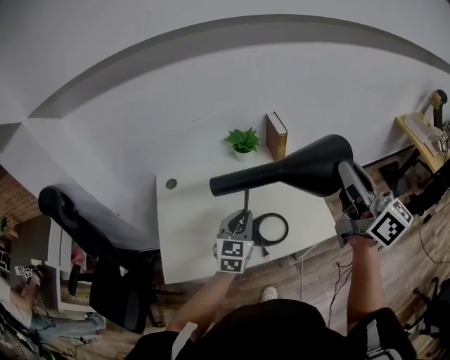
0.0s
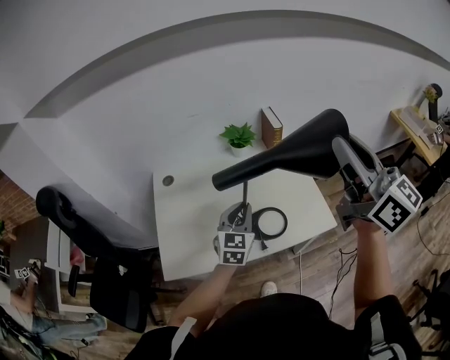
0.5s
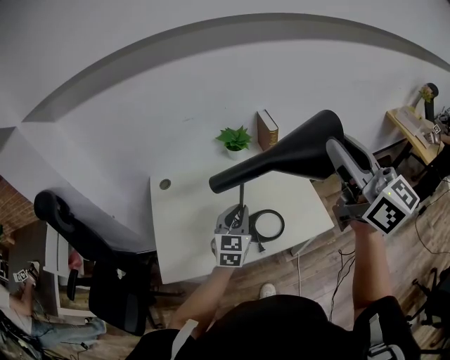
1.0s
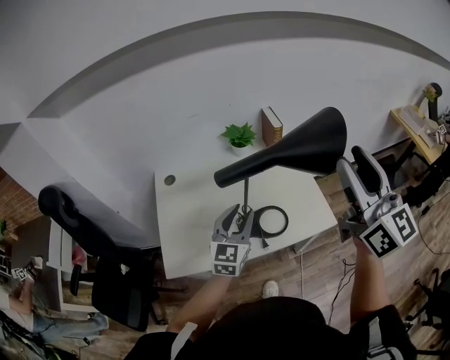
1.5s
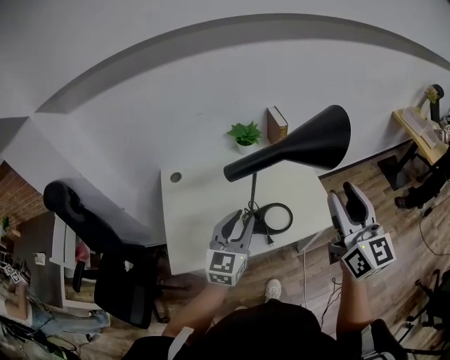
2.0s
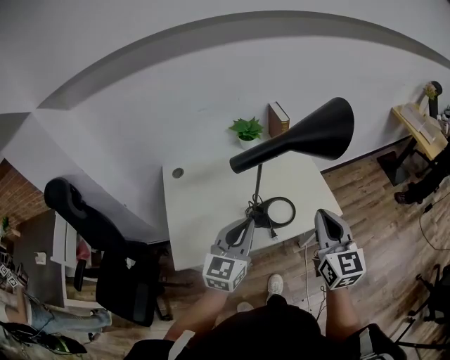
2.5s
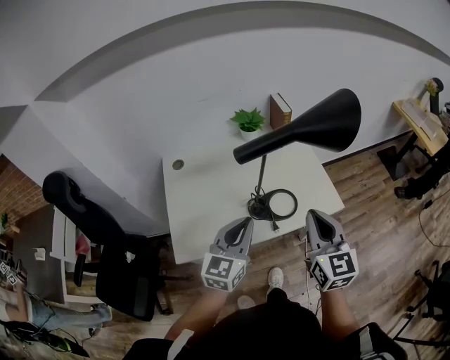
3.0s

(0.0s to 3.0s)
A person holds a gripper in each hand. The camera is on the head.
0.0s - 1.5s: The right gripper goes approximately 5 cm backward, swivels approximately 20 degrees, and opens its fingers; the left gripper shifts by about 5 cm, and opens up.
1.5s - 3.0s: The right gripper moves downward, to the left and backward, about 25 cm, swivels about 30 degrees, and closes up, while the left gripper goes about 10 cm backward, and closes its fingers.

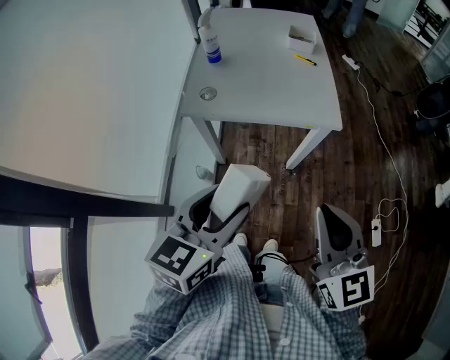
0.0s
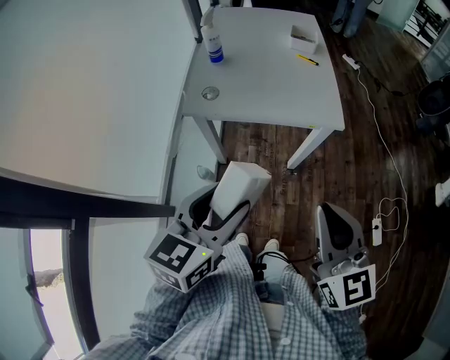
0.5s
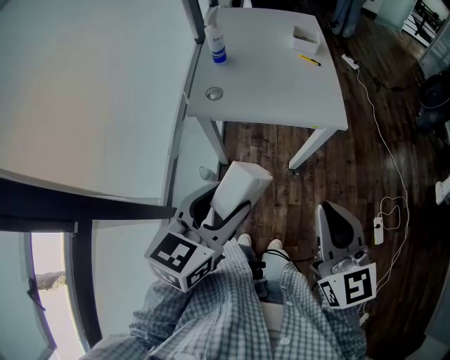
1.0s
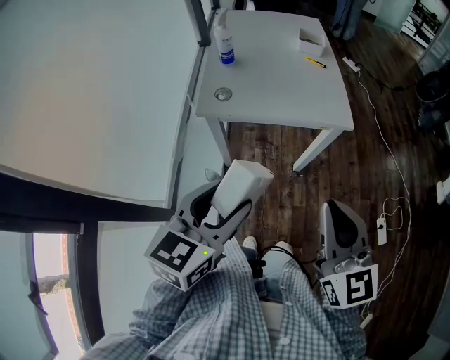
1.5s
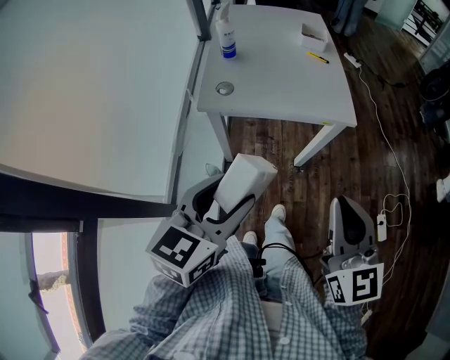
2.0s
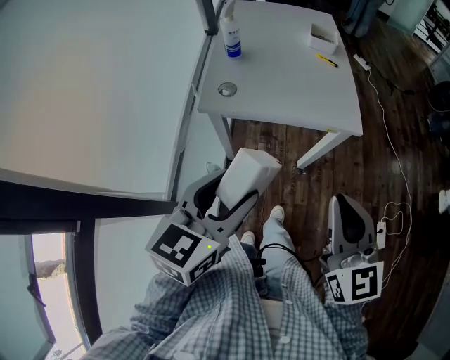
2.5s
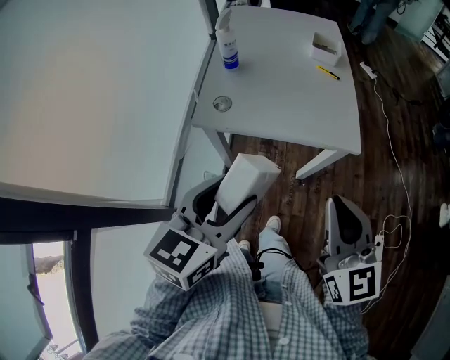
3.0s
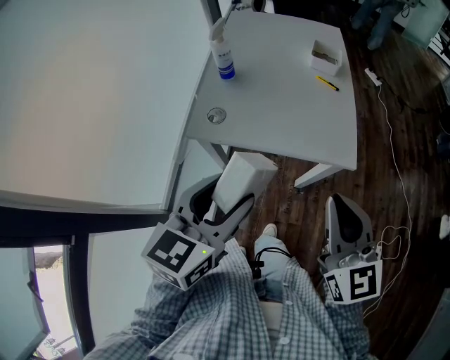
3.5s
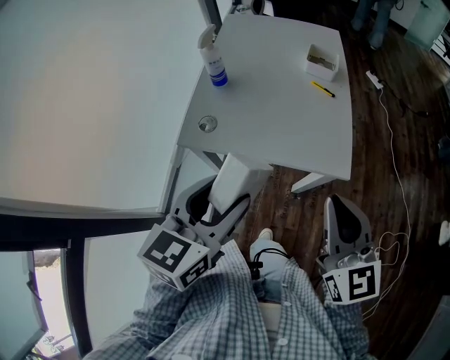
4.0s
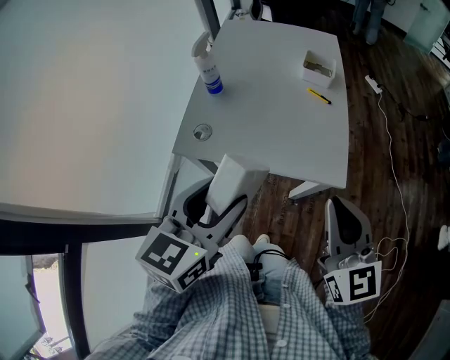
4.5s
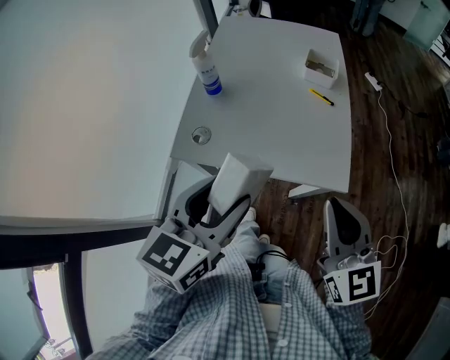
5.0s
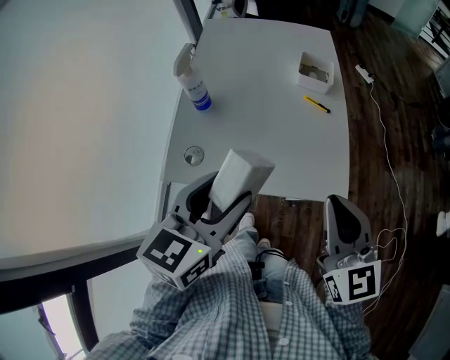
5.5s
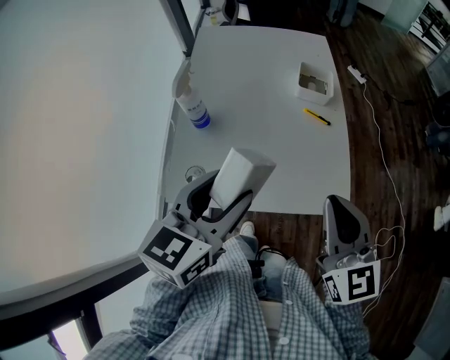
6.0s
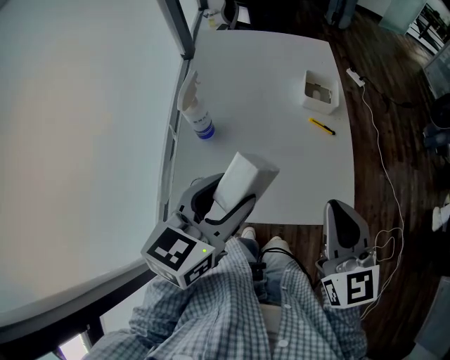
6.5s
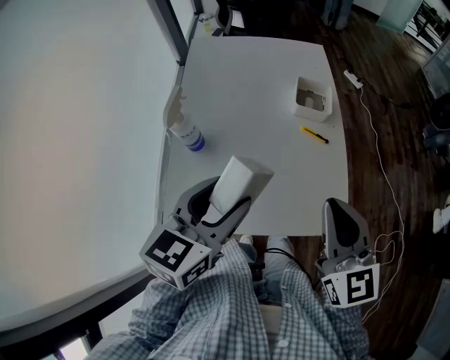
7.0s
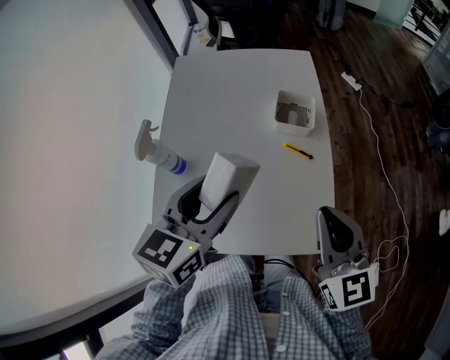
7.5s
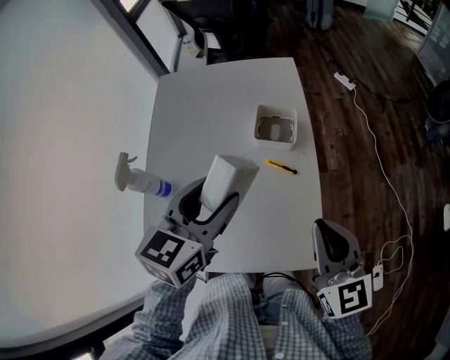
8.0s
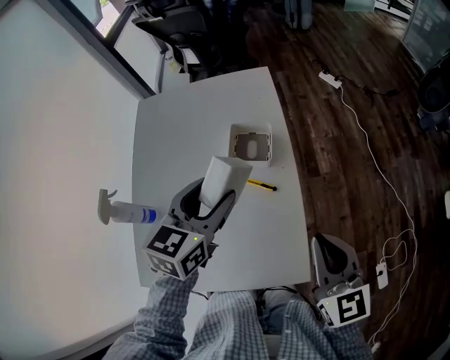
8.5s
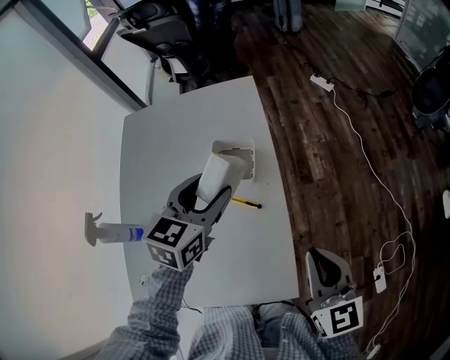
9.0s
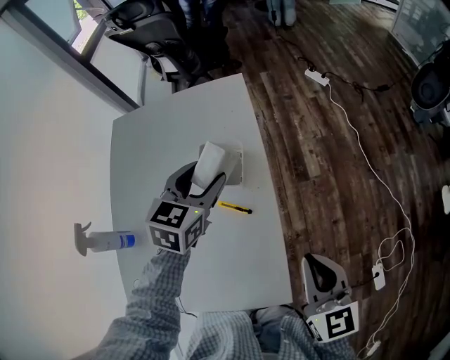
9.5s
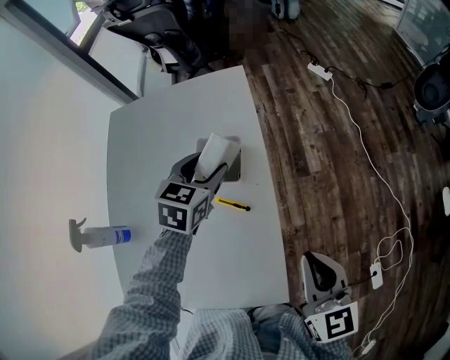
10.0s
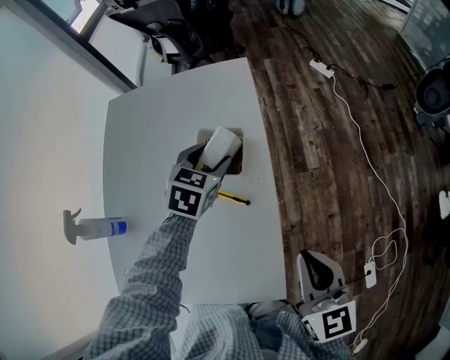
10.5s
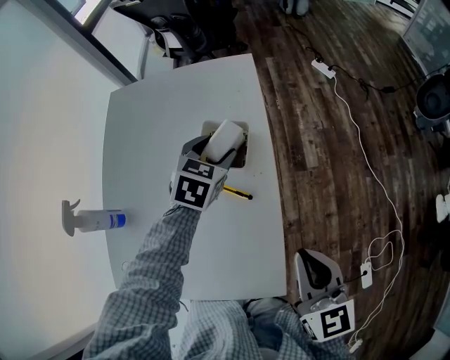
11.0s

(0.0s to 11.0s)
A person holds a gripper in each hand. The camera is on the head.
0.0s - 2.0s: The left gripper moves to the left, some 5 cm.
2.0s - 3.5s: Both grippers travel together forward, approximately 15 cm.
3.5s - 5.5s: Both grippers travel together forward, approximately 15 cm.
5.5s - 7.5s: Both grippers travel together forward, about 15 cm.
7.5s - 9.0s: The left gripper is displaced forward and to the right by some 25 cm, while the right gripper is displaced to the right, forward and downward by roughly 15 cm.
9.0s - 11.0s: The left gripper is displaced downward and forward by approximately 15 cm.

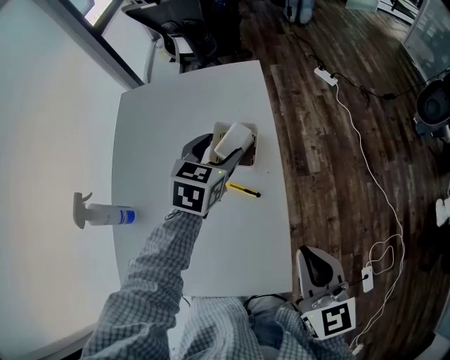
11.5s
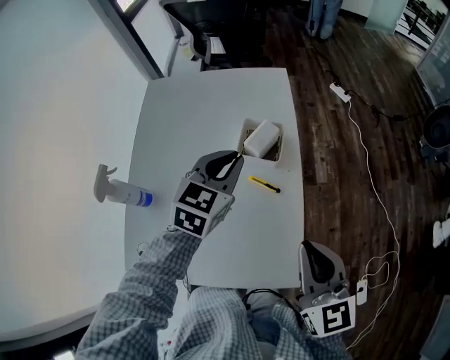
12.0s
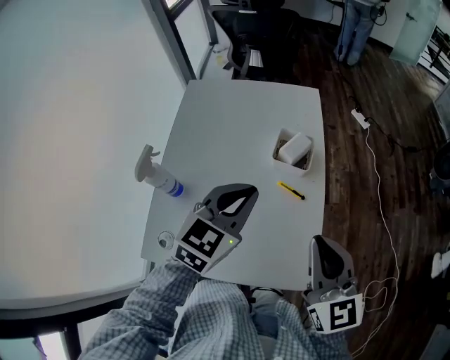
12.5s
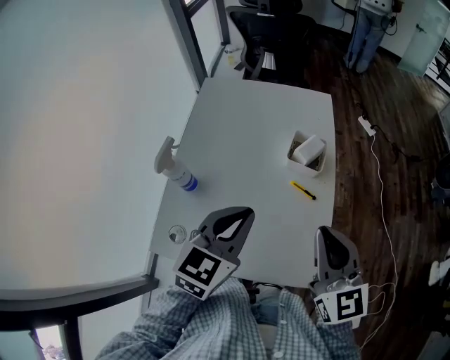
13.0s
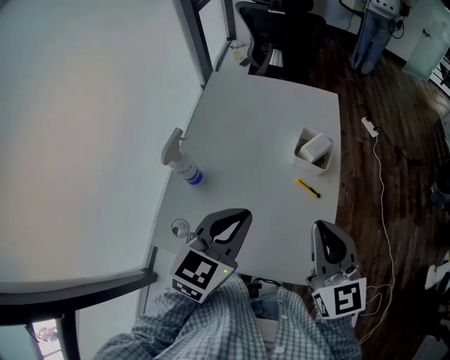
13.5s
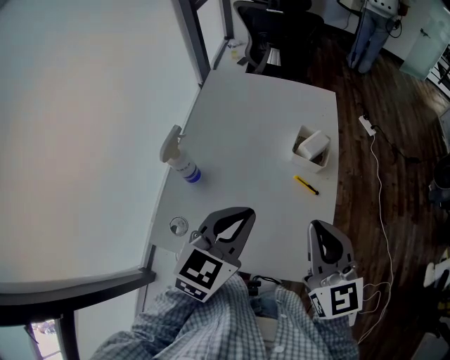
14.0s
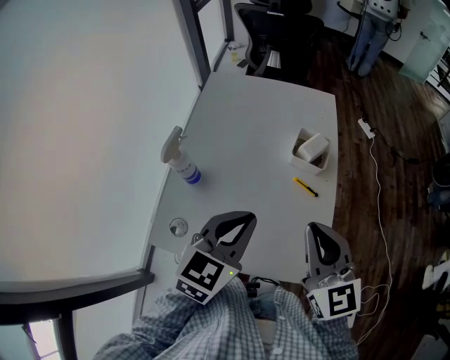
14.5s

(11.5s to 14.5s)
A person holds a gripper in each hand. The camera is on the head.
11.5s - 13.0s: The right gripper shifts about 15 cm to the left and upward. Meanwhile the left gripper moves backward, upward and to the left, some 30 cm, and closes its fingers.
13.0s - 14.5s: The grippers move only a little.

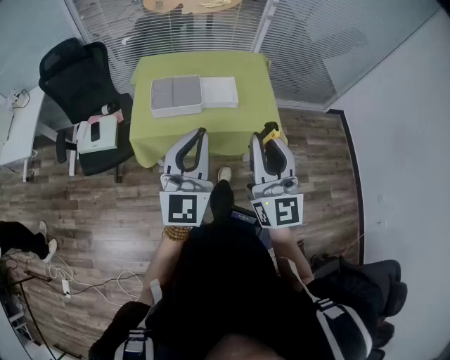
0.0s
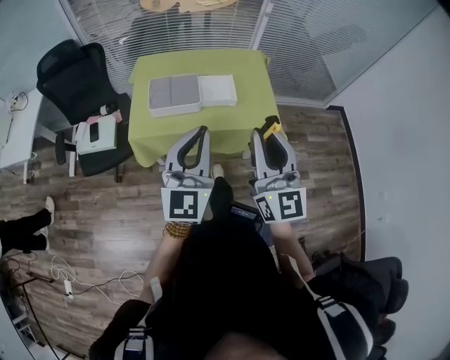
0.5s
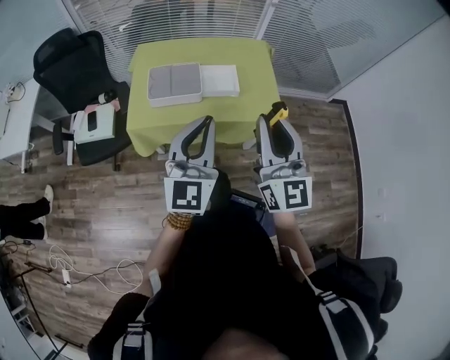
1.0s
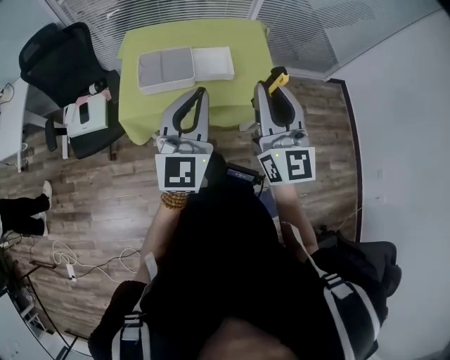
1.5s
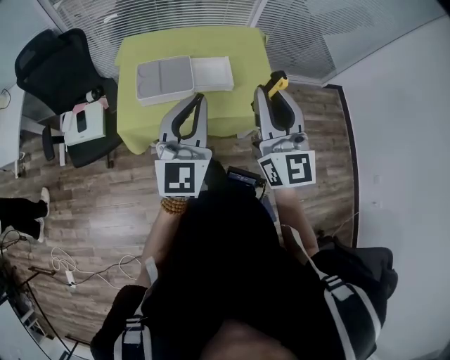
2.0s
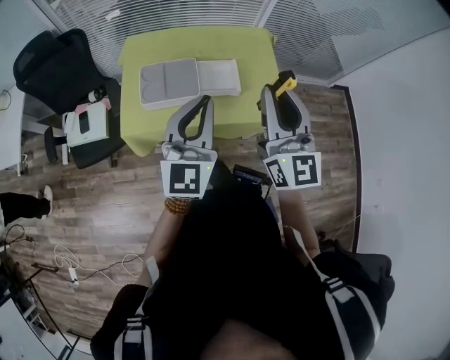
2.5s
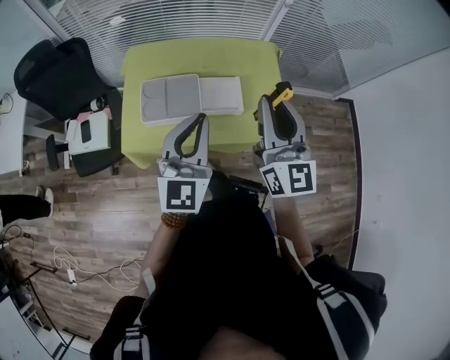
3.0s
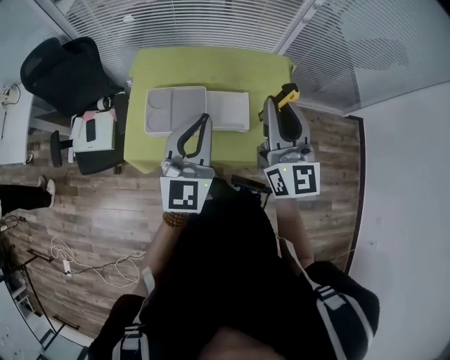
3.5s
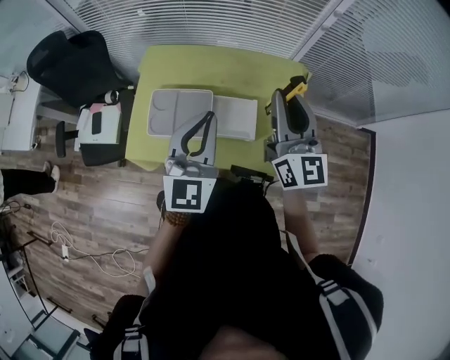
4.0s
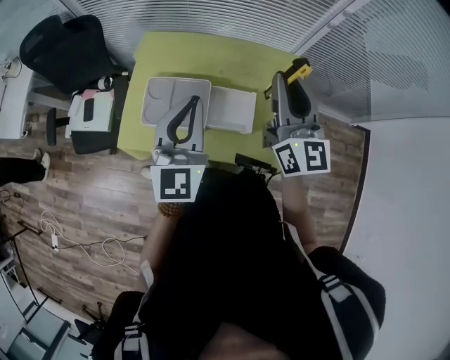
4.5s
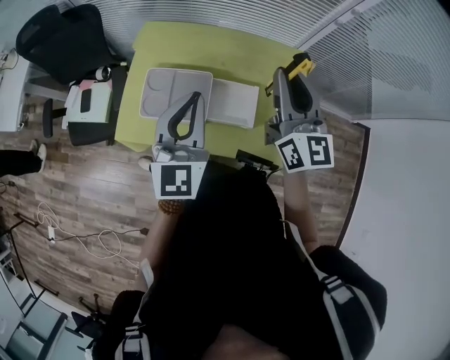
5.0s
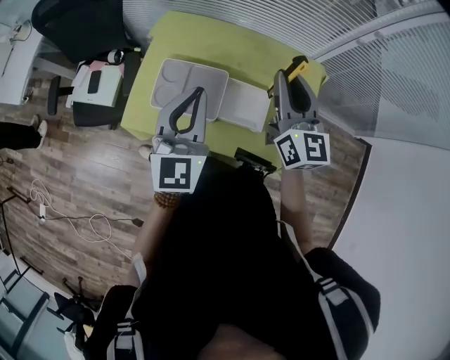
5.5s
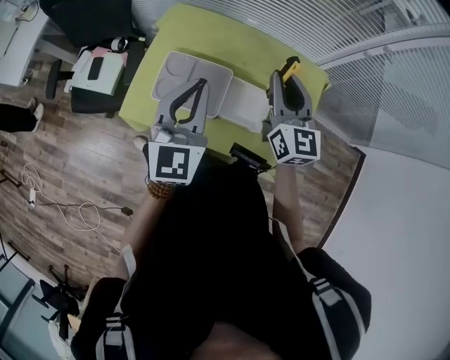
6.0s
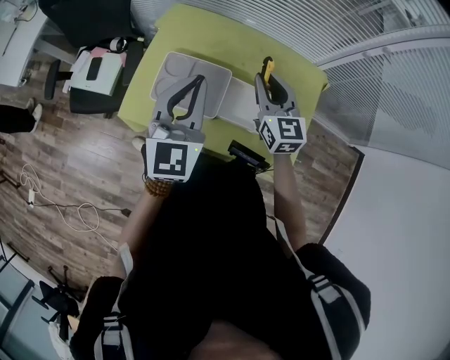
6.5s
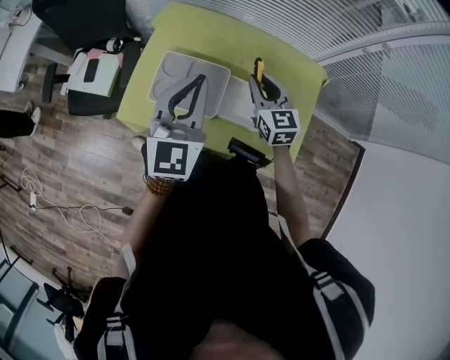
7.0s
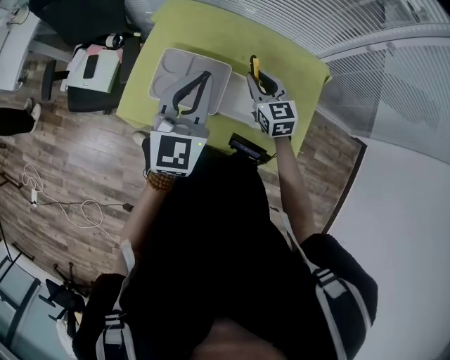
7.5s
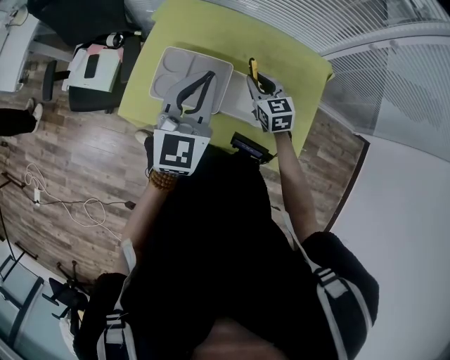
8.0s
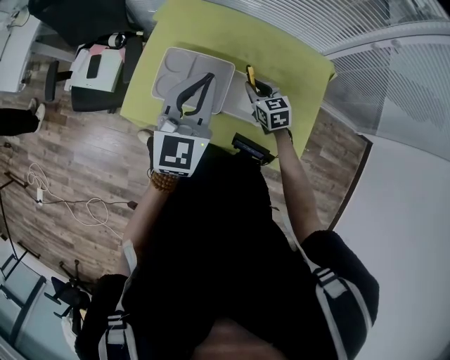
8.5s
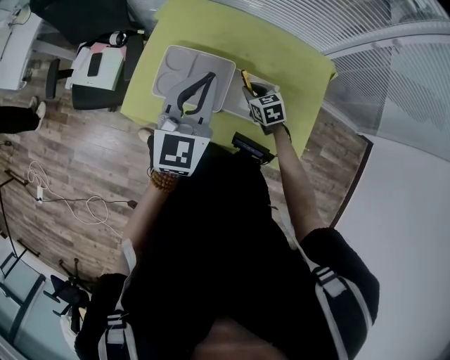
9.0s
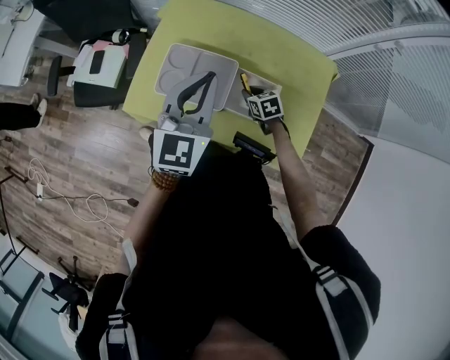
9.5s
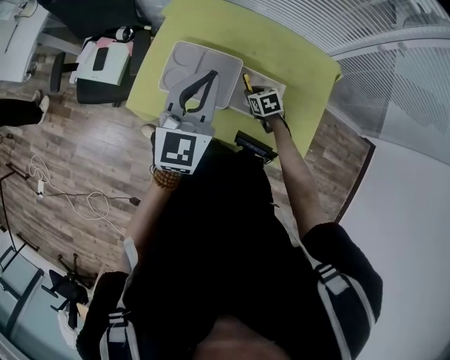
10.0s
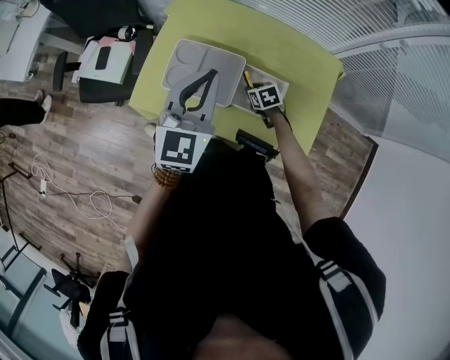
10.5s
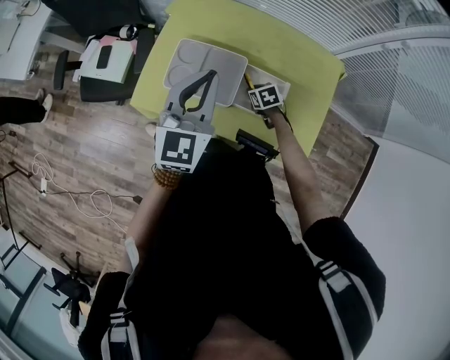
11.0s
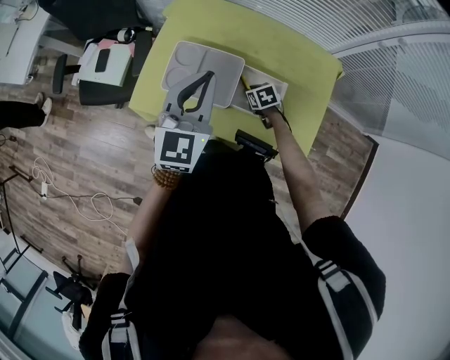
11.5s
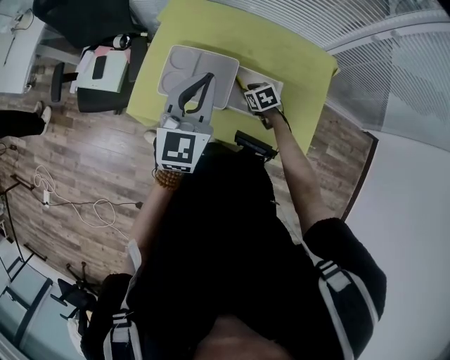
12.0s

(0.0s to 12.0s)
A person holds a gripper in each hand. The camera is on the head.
0.0s - 2.0s: The two grippers go roughly 15 cm forward.
2.0s - 4.0s: Both grippers travel together forward, about 25 cm.
4.0s - 6.0s: The left gripper shifts approximately 10 cm to the left. Meanwhile the right gripper heads downward, forward and to the left, covering about 15 cm.
6.0s - 8.0s: The right gripper shifts approximately 20 cm downward, and rotates about 30 degrees.
8.0s - 10.0s: The right gripper moves downward, roughly 15 cm, and changes its angle by about 30 degrees.
10.0s - 12.0s: There are only small adjustments of the grippers.
